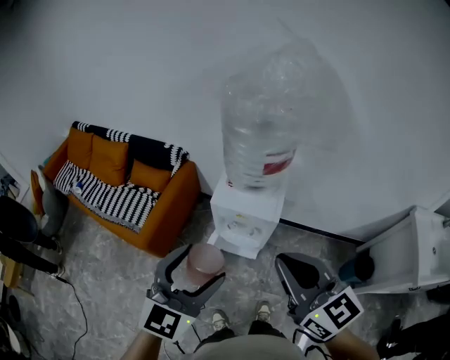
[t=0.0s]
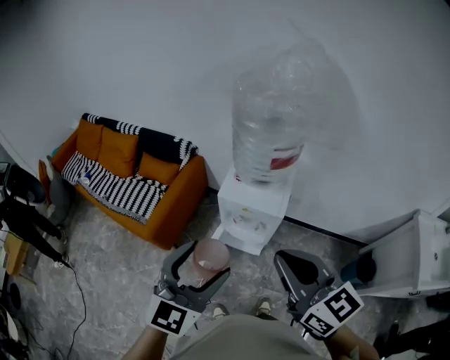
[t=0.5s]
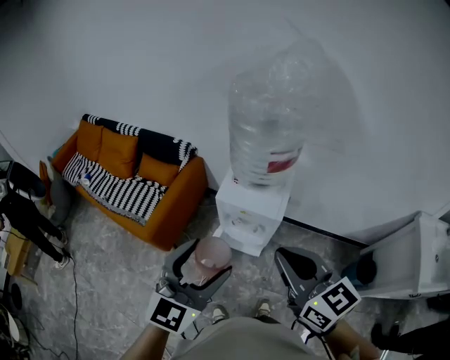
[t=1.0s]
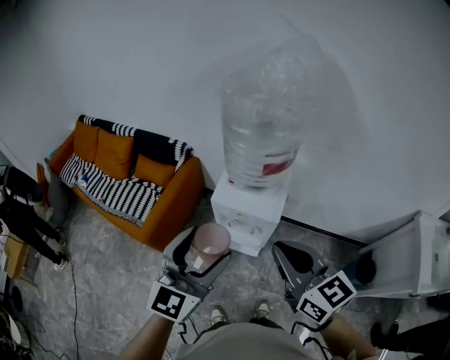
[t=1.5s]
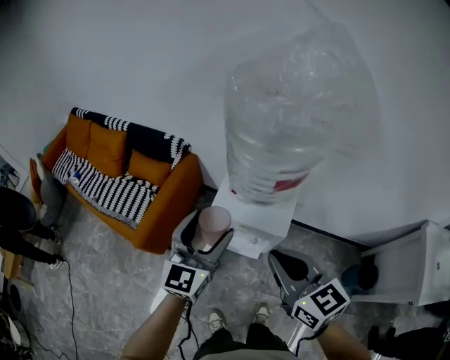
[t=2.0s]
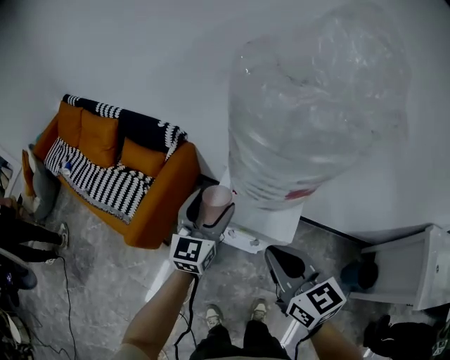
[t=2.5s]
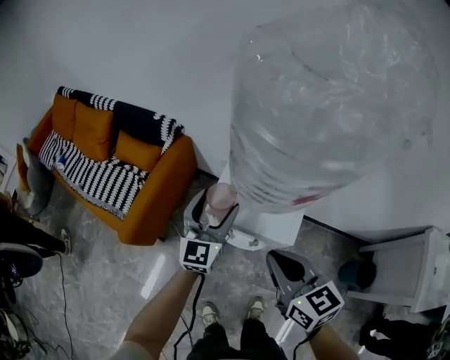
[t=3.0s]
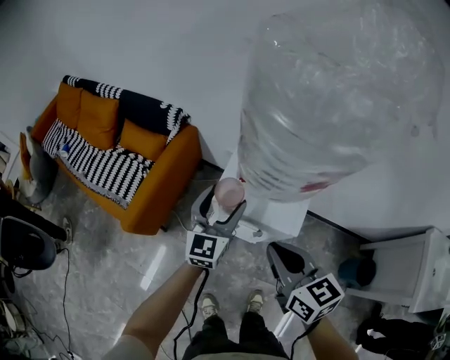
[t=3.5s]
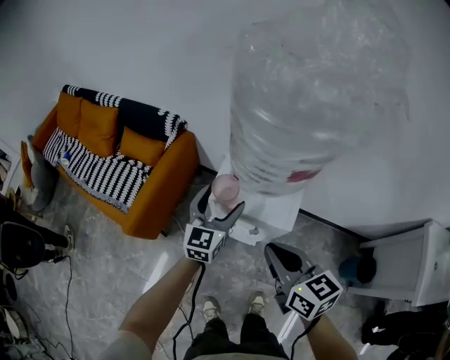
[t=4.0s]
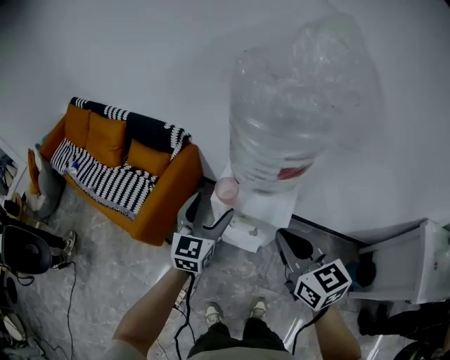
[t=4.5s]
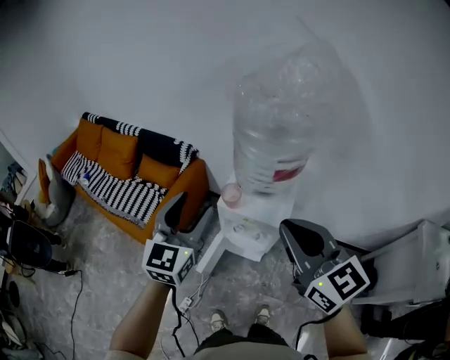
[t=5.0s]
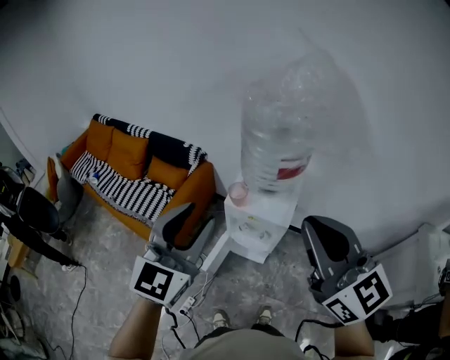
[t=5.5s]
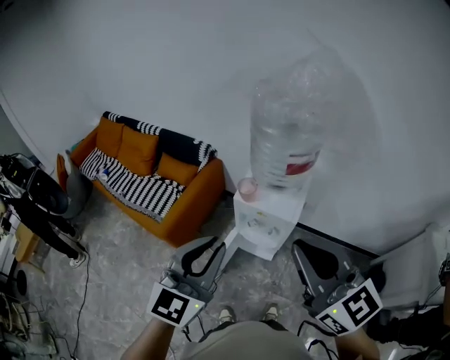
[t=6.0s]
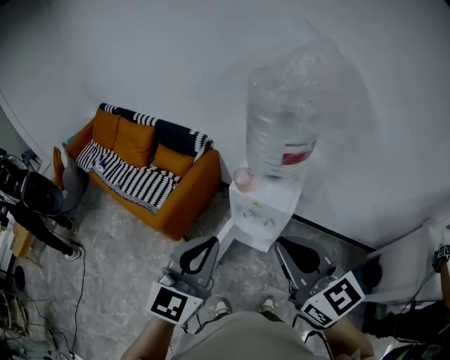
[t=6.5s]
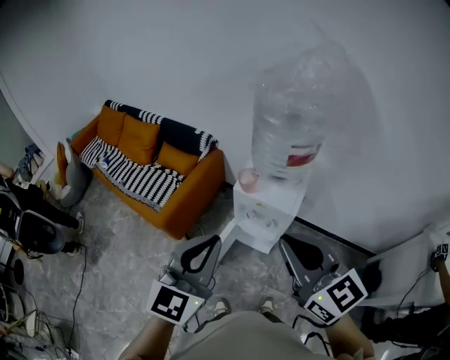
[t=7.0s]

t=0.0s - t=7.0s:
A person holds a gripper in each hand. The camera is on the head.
t=0.0s - t=2.0s: Both grippers move forward and downward, roughly 20 cm.
t=2.0s - t=3.5s: Both grippers move downward and forward, approximately 15 cm.
t=3.5s - t=5.0s: The right gripper moves upward, some 25 cm, and rotates some 30 degrees, while the left gripper moves upward and backward, some 25 cm.
t=5.0s - t=7.0s: The right gripper goes roughly 10 cm backward; the left gripper travels backward by approximately 20 cm, and closes up.

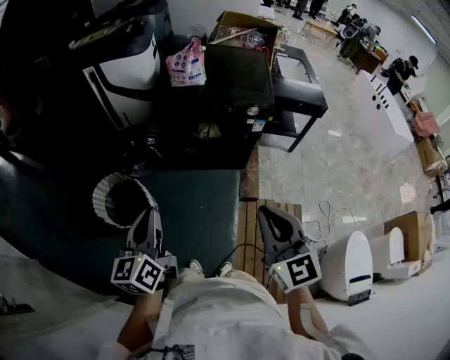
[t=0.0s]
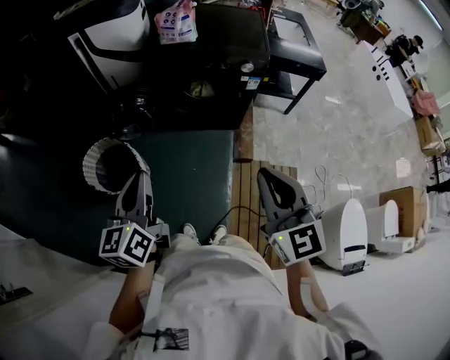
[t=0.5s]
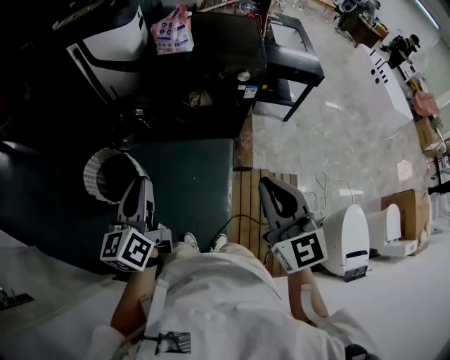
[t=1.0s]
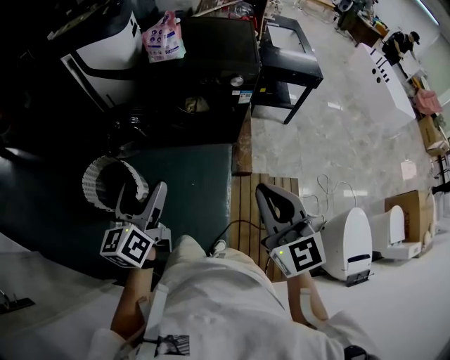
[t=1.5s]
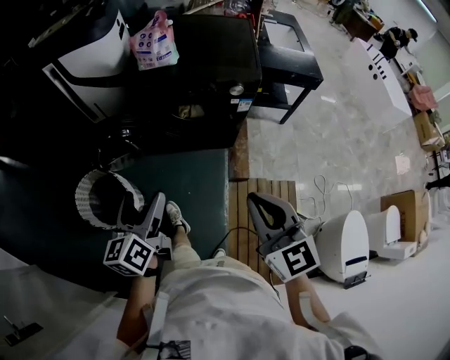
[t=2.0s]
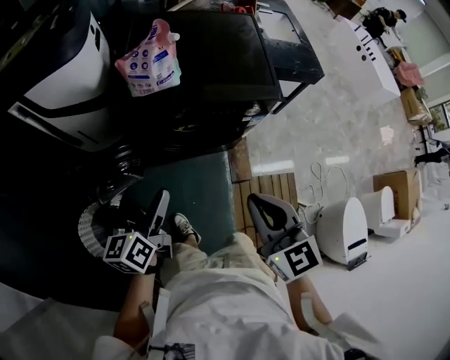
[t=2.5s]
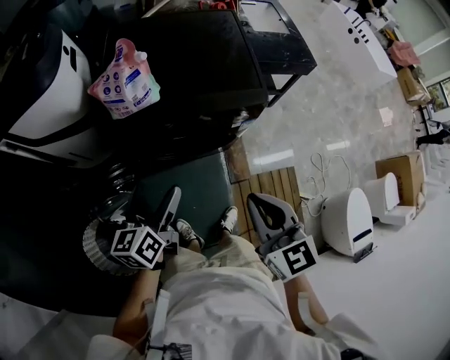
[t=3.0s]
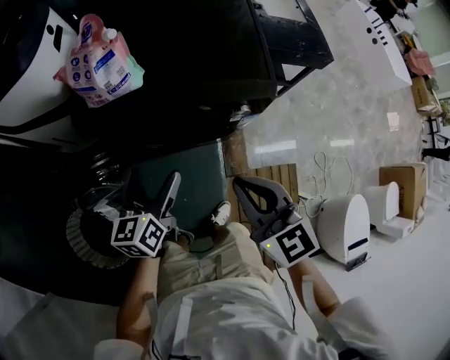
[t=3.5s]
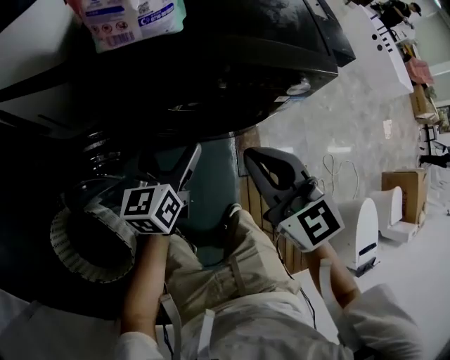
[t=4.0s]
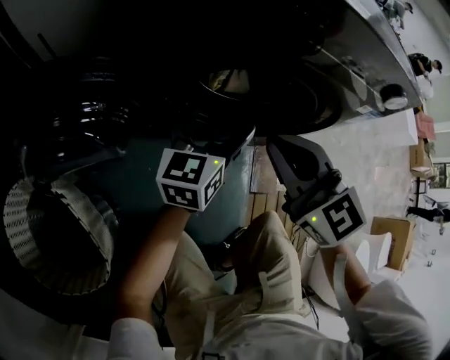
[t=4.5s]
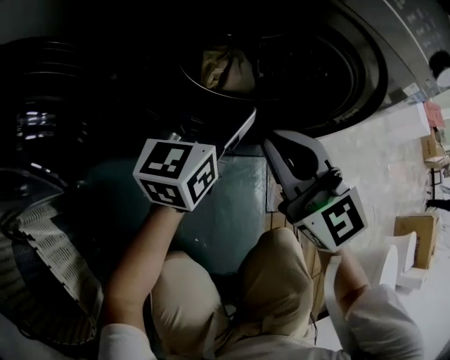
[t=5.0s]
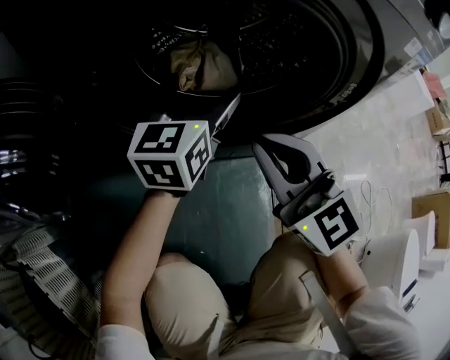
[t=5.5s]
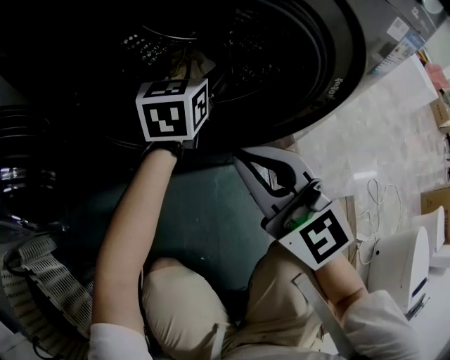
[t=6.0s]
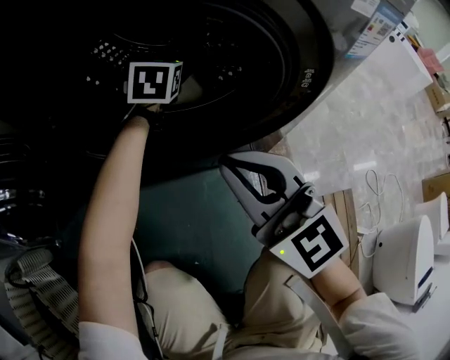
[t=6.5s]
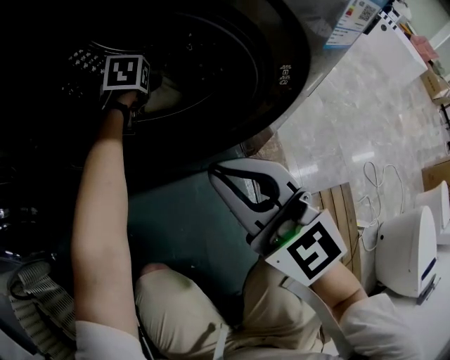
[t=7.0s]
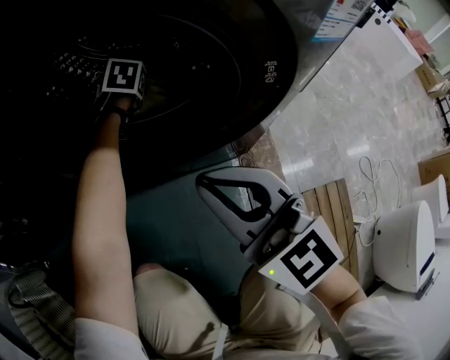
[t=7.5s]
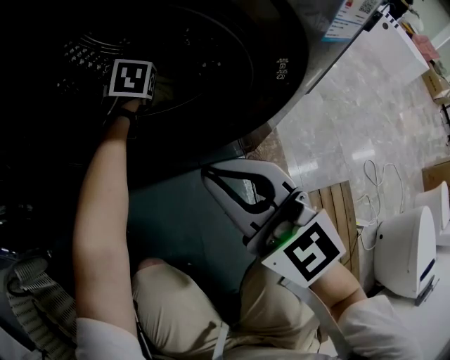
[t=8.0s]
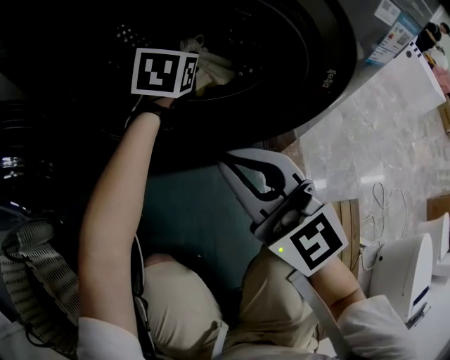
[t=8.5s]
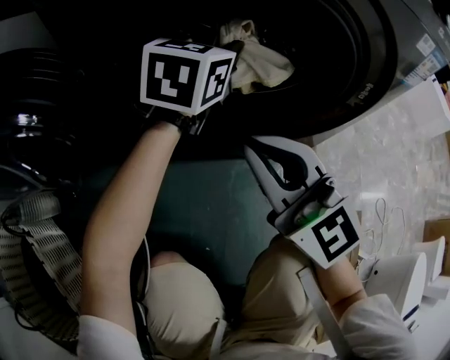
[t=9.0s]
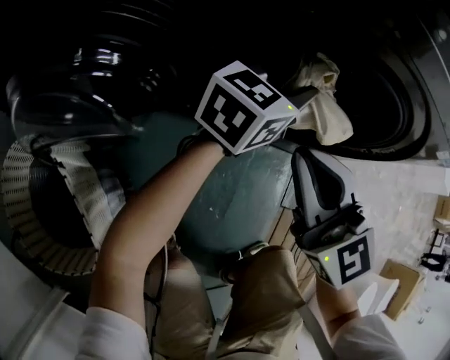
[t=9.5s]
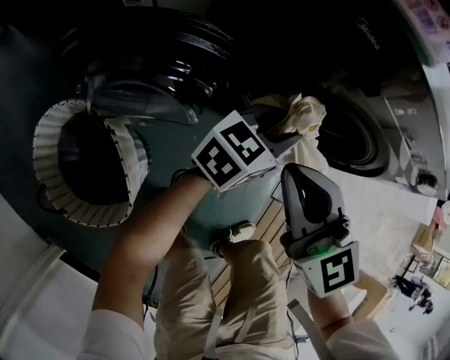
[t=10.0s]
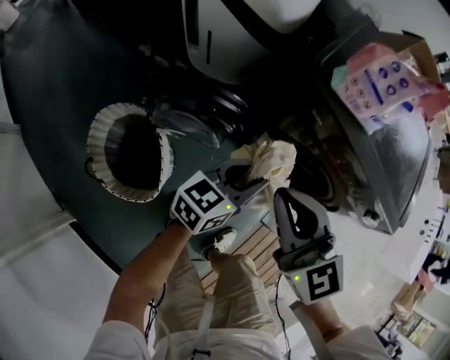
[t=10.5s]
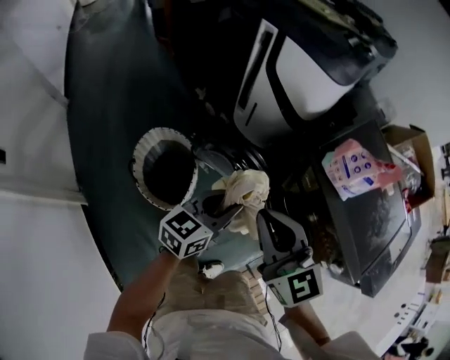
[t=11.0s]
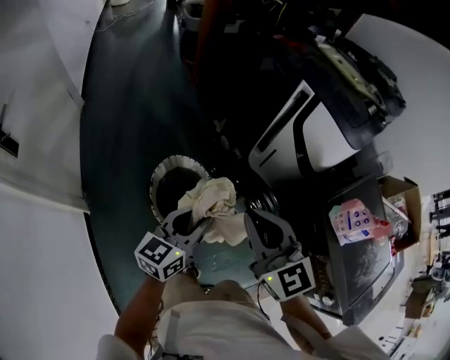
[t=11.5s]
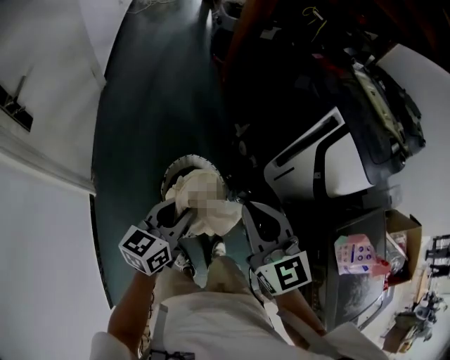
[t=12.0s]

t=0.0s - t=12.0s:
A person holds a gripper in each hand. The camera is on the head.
t=0.0s - t=2.0s: The left gripper goes about 15 cm forward, downward and to the right, and opens, while the right gripper shifts some 10 cm forward and to the right.
t=2.0s - t=4.0s: Both grippers travel together forward and downward, roughly 40 cm.
t=4.0s - t=6.0s: The left gripper goes approximately 40 cm downward and forward, and changes its angle by about 20 degrees; the right gripper goes about 40 cm downward.
t=6.0s - t=8.0s: The right gripper goes some 5 cm to the right, while the left gripper travels downward and forward by some 15 cm, tips its fingers downward by some 40 degrees, and closes its fingers.
t=8.0s - t=10.0s: The right gripper moves to the left and upward, about 35 cm, and swivels approximately 20 degrees, while the left gripper is displaced upward, backward and to the left by roughly 40 cm, and tips its fingers upward by approximately 30 degrees.
t=10.0s - t=12.0s: The right gripper shifts some 40 cm upward, and swivels approximately 50 degrees; the left gripper changes place by some 70 cm, and rotates about 80 degrees.

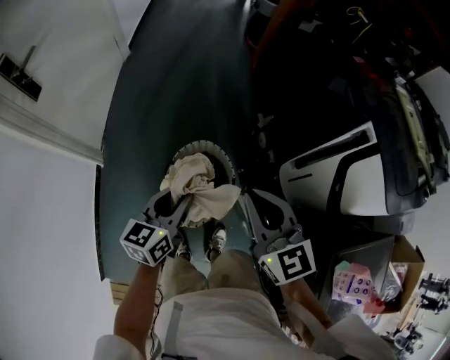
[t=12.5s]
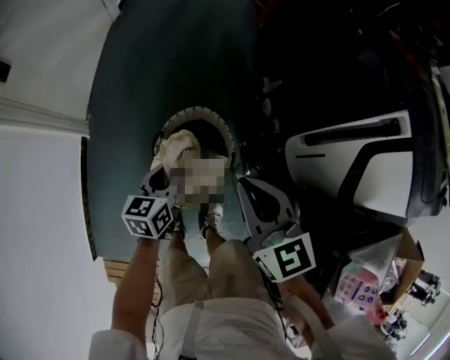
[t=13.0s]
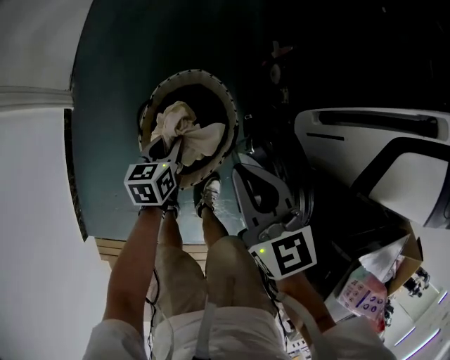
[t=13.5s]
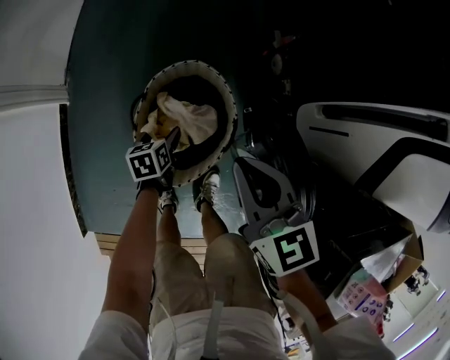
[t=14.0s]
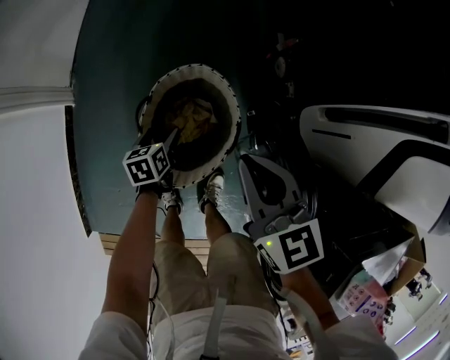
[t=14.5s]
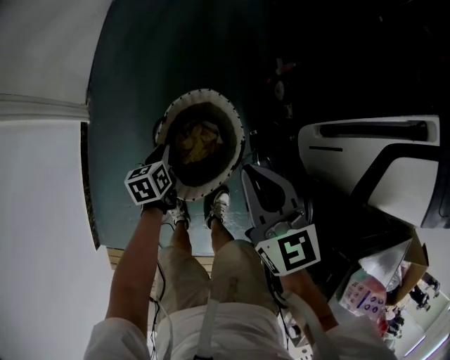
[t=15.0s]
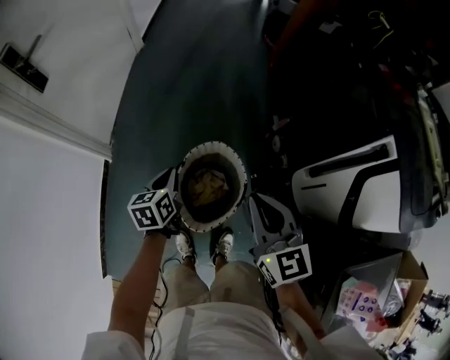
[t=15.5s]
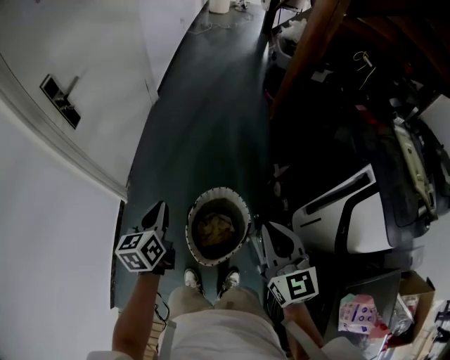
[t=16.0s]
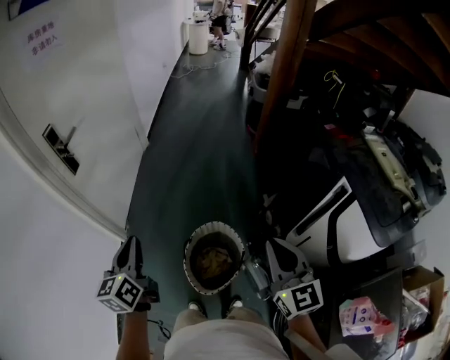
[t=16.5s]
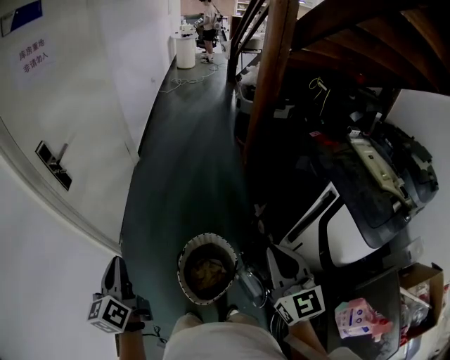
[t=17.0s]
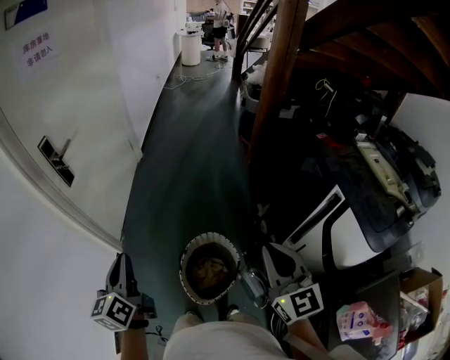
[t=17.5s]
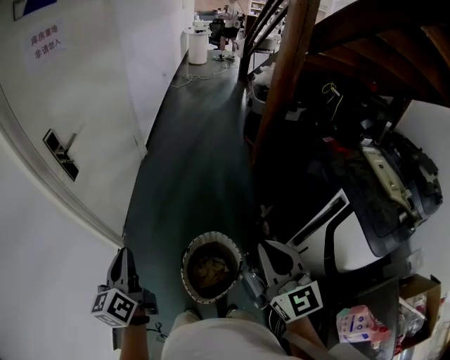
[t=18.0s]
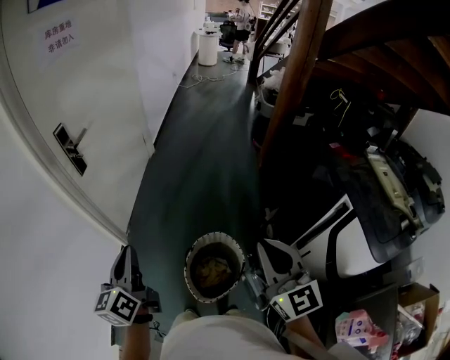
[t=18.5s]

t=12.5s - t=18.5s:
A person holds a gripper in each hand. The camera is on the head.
t=12.5s - t=14.5s: The right gripper is displaced downward by roughly 25 cm, while the left gripper heads downward, covering some 40 cm, angles its fingers downward, by about 40 degrees, and opens its fingers.
t=14.5s - t=16.5s: The left gripper heads upward, covering about 60 cm, points its fingers about 40 degrees further upward, and closes, while the right gripper goes about 35 cm upward, and changes its angle by about 30 degrees.
t=16.5s - t=18.5s: The left gripper shifts by about 5 cm, while the right gripper is displaced upward by approximately 5 cm.

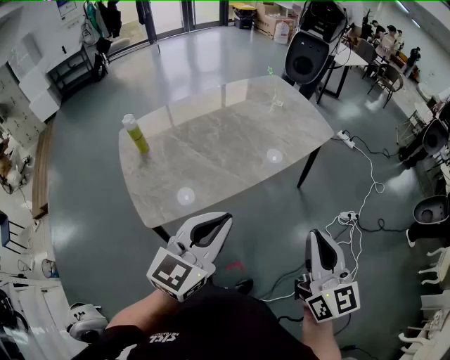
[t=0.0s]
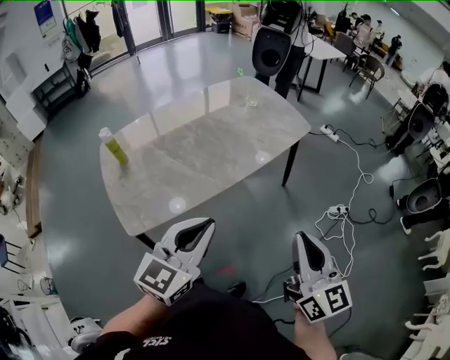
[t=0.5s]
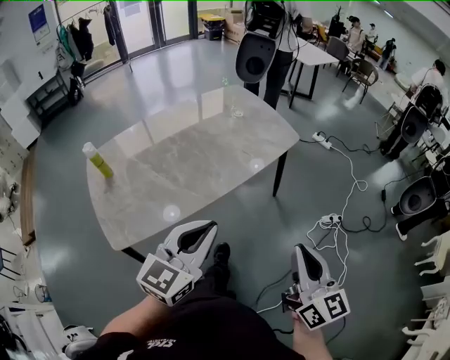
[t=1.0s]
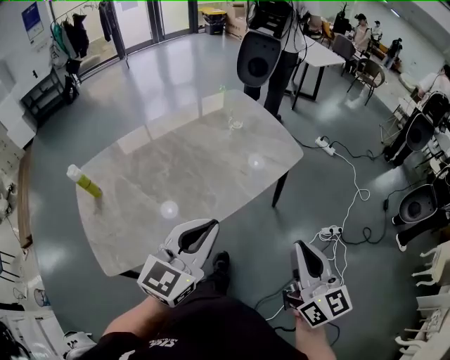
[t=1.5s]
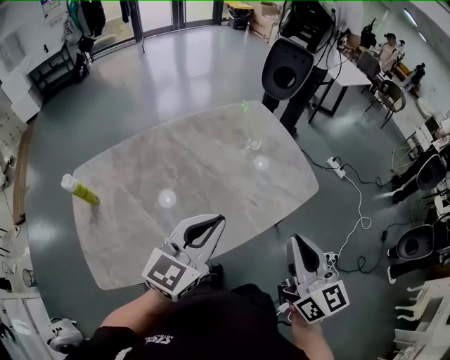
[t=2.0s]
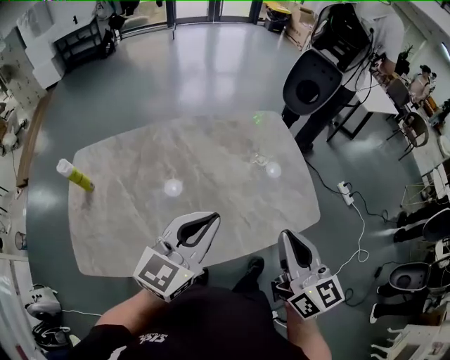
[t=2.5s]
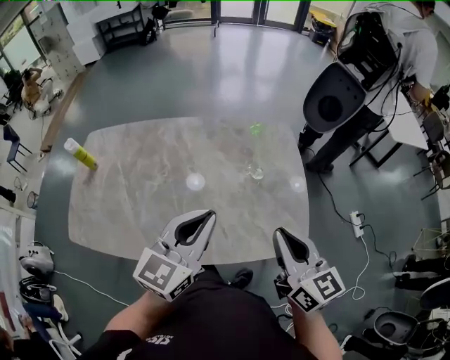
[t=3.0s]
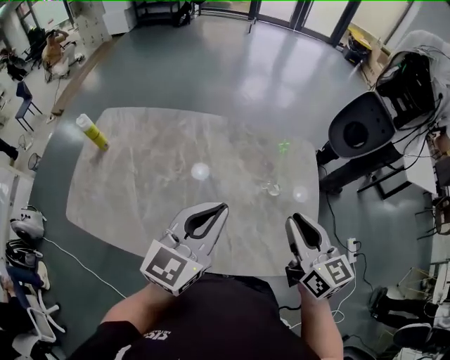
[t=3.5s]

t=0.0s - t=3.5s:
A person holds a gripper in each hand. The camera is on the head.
t=0.0s - t=2.0s: Both grippers travel together forward, approximately 35 cm.
t=2.0s - t=3.5s: The left gripper changes place by some 20 cm, and changes its angle by roughly 40 degrees. The right gripper shifts by some 30 cm, and rotates some 40 degrees.
